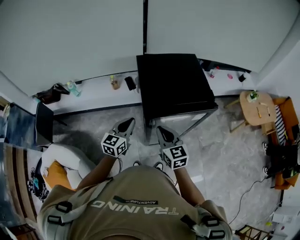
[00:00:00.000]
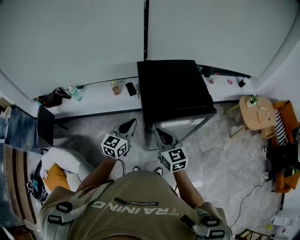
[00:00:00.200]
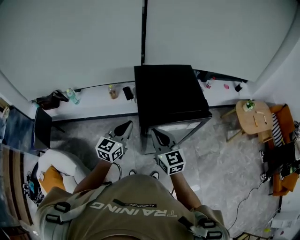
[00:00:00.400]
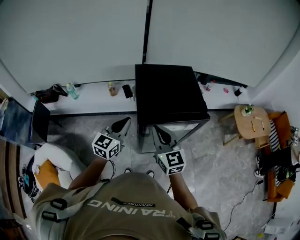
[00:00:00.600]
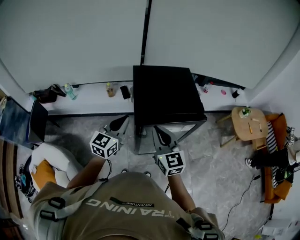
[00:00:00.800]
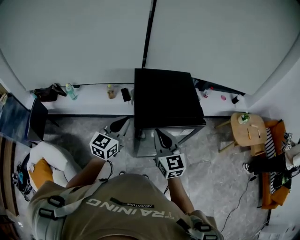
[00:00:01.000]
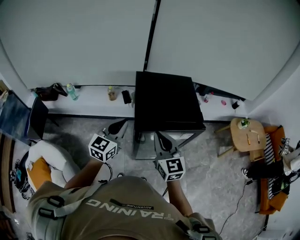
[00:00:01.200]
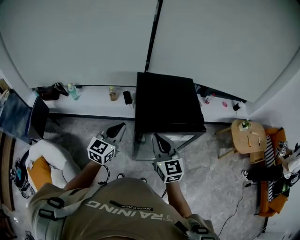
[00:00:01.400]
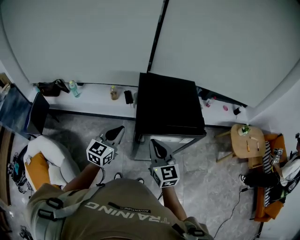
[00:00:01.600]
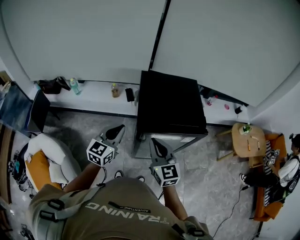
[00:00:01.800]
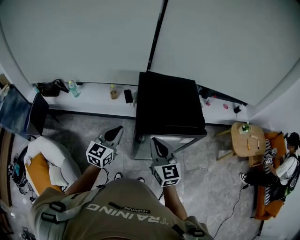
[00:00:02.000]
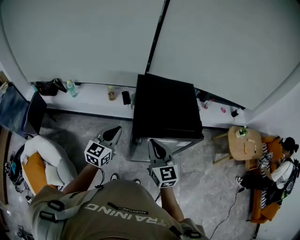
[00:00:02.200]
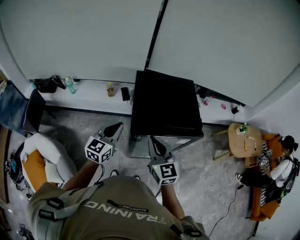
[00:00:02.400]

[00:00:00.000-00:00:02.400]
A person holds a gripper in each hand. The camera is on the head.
00:00:00.000 to 00:00:01.200: The two grippers go roughly 10 cm upward.
00:00:01.200 to 00:00:02.400: The grippers make only small movements.

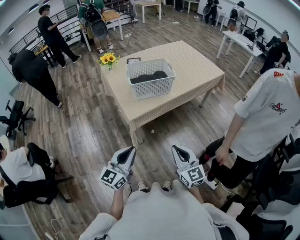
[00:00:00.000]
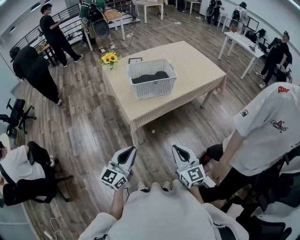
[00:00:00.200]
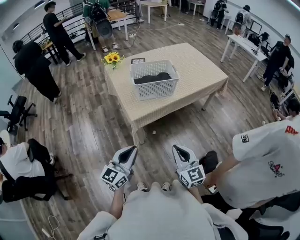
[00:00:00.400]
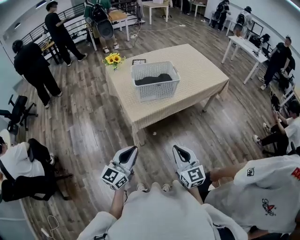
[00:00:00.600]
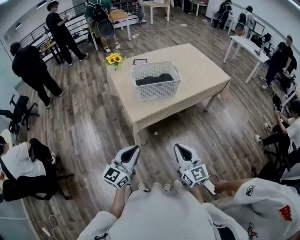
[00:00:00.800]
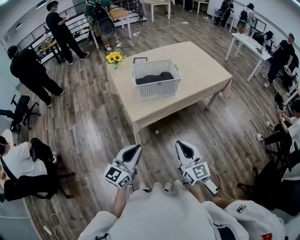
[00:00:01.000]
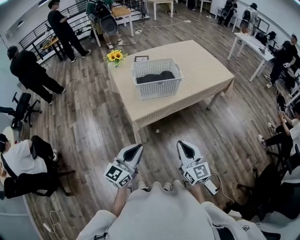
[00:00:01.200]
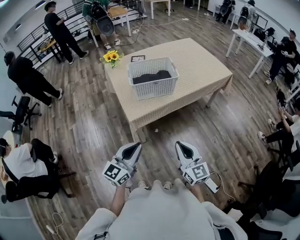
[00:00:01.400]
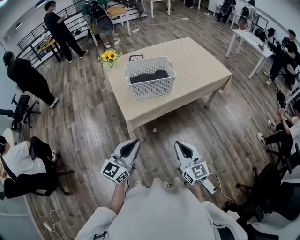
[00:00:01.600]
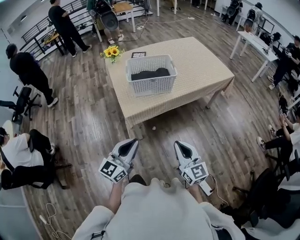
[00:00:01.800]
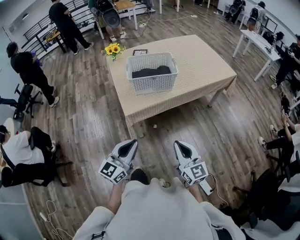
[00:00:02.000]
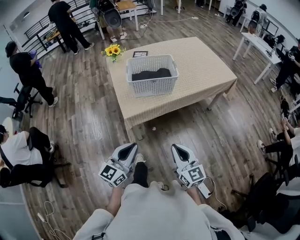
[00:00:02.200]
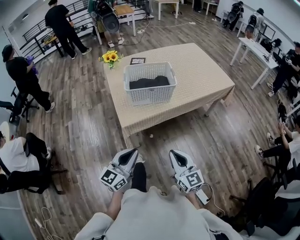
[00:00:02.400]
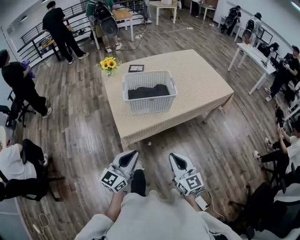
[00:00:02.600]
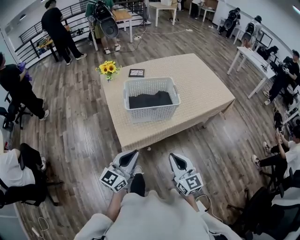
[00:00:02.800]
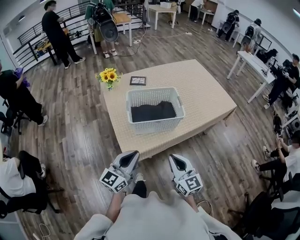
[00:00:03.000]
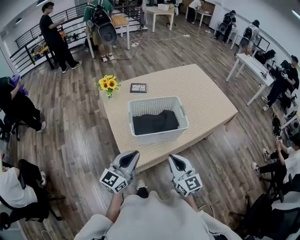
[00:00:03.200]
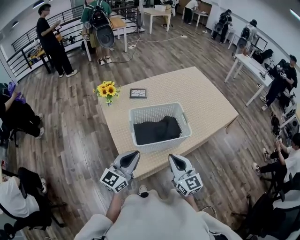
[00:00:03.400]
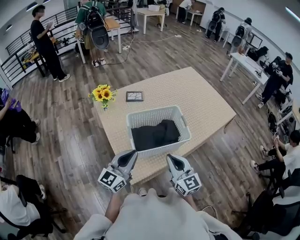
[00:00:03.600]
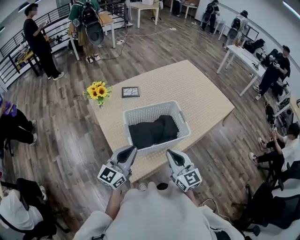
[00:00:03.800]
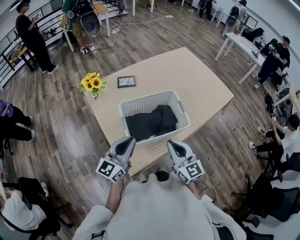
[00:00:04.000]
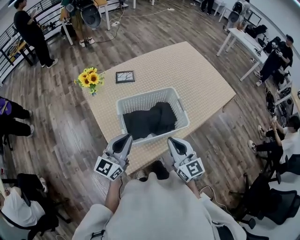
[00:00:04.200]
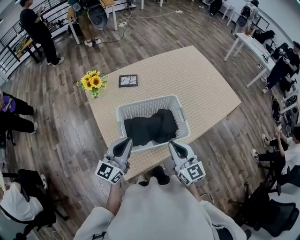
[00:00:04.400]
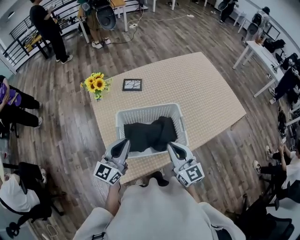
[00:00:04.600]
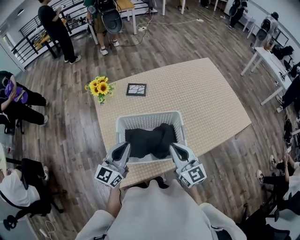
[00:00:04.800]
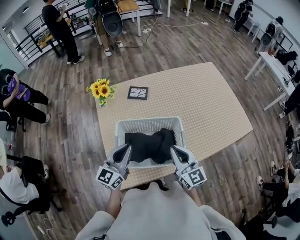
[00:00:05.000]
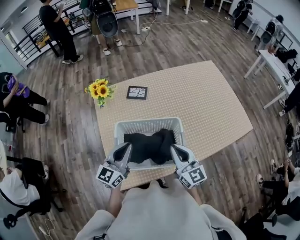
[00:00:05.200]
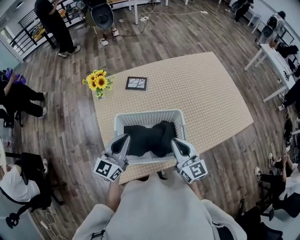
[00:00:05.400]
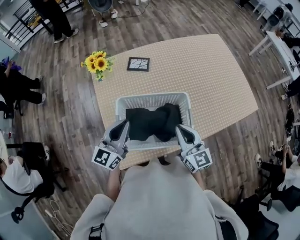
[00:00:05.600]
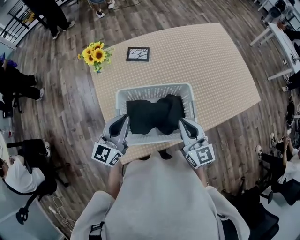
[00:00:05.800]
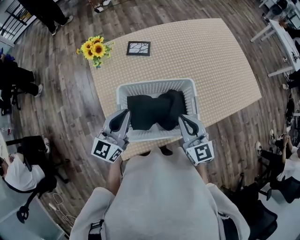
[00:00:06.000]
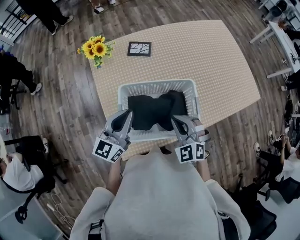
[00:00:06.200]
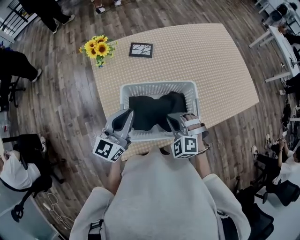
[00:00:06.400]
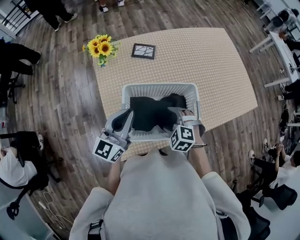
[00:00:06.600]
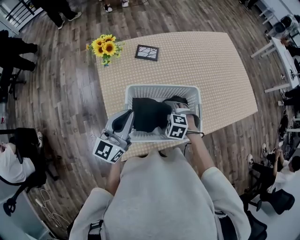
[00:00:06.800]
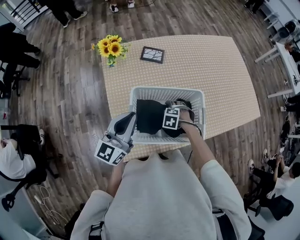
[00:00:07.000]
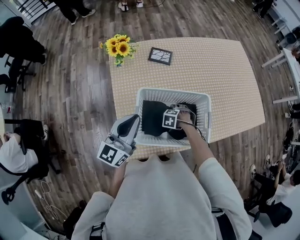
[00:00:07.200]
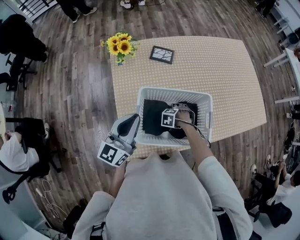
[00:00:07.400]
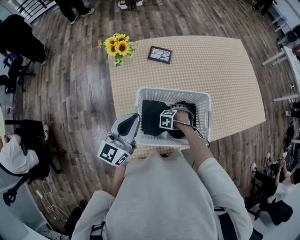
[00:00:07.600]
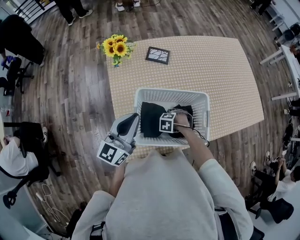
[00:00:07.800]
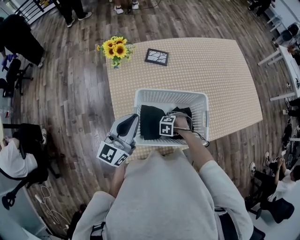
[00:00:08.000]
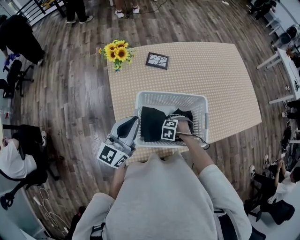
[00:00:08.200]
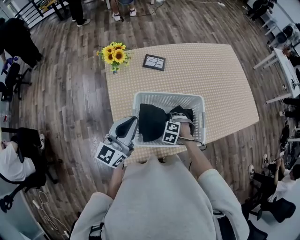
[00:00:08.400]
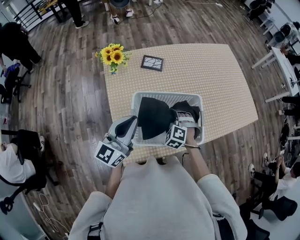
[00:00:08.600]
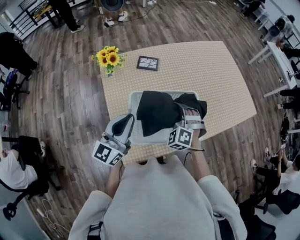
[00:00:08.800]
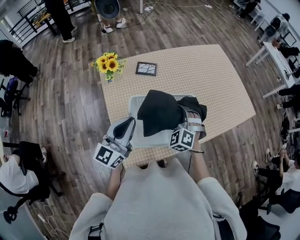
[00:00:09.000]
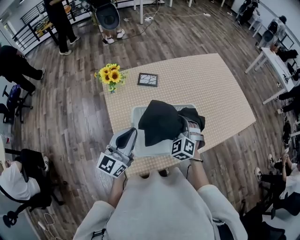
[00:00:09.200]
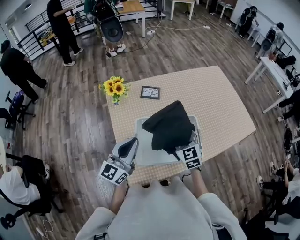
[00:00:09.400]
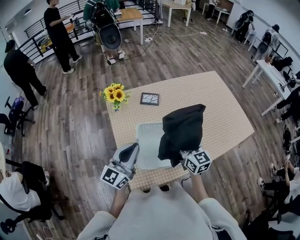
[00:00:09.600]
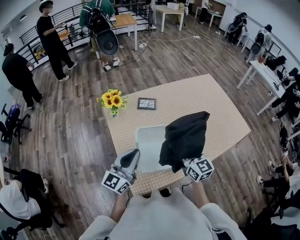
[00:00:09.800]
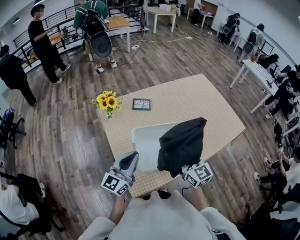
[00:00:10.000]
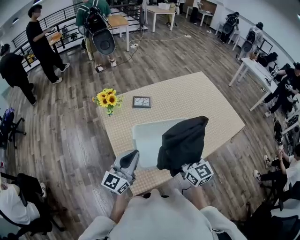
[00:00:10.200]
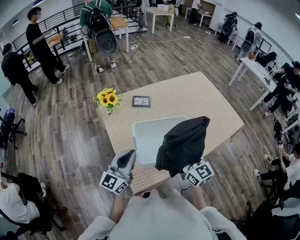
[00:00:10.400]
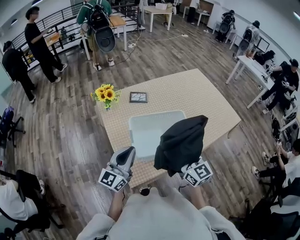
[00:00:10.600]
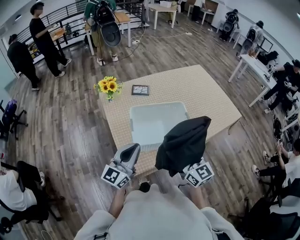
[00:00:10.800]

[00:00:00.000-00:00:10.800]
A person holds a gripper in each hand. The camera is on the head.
00:00:00.000 to 00:00:01.600: Both grippers move to the right and forward, about 10 cm.
00:00:01.600 to 00:00:03.000: The two grippers go roughly 20 cm forward.
00:00:03.000 to 00:00:04.600: The two grippers go some 25 cm forward.
00:00:04.600 to 00:00:06.200: The left gripper goes approximately 5 cm forward. The right gripper travels downward and forward by roughly 10 cm, and rolls counterclockwise, seen from behind, by about 40 degrees.
00:00:06.200 to 00:00:07.800: The right gripper travels downward by some 25 cm, angles its fingers downward, by some 60 degrees, and opens its fingers.
00:00:07.800 to 00:00:09.200: The right gripper shifts roughly 25 cm upward, and angles its fingers upward, by approximately 50 degrees.
00:00:09.200 to 00:00:10.800: The right gripper goes approximately 25 cm backward and upward, and rotates around the line of its fingers by some 50 degrees, clockwise from behind; the left gripper shifts roughly 15 cm backward.

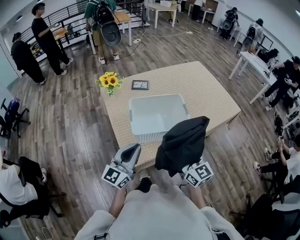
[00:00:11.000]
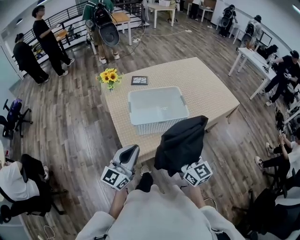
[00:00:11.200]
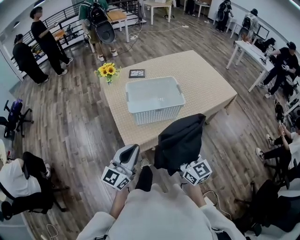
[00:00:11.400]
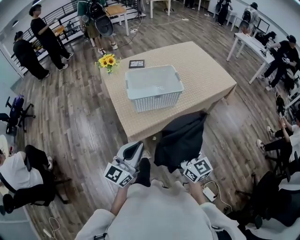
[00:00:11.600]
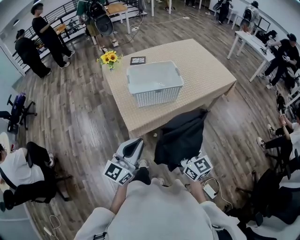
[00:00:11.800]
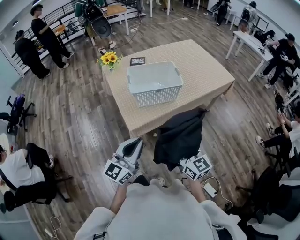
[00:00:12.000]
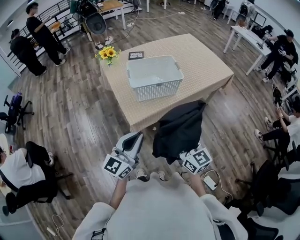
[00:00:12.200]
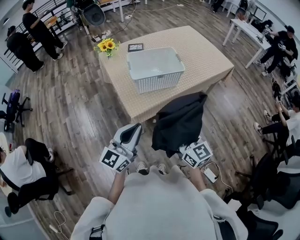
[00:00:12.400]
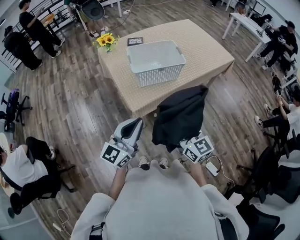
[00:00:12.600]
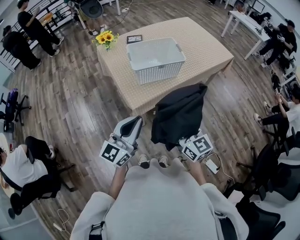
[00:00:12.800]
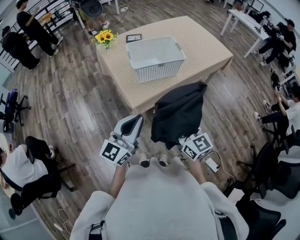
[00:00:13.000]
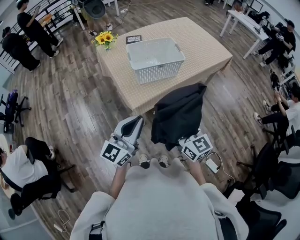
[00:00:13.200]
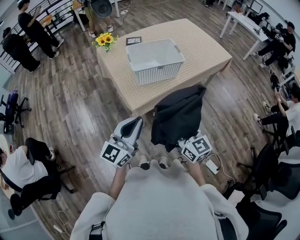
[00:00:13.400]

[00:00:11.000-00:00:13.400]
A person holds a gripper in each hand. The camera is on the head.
00:00:11.000 to 00:00:12.200: The grippers both shift backward by some 25 cm.
00:00:12.200 to 00:00:13.400: The grippers make only small movements.

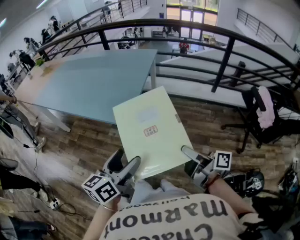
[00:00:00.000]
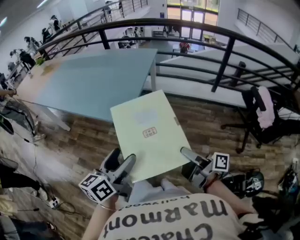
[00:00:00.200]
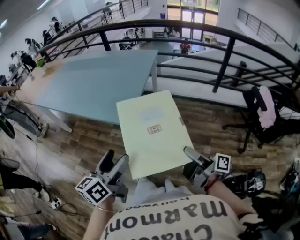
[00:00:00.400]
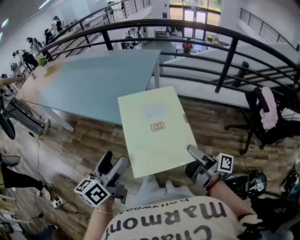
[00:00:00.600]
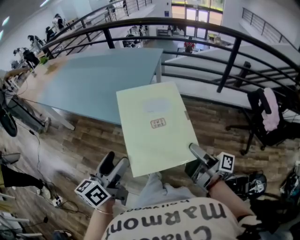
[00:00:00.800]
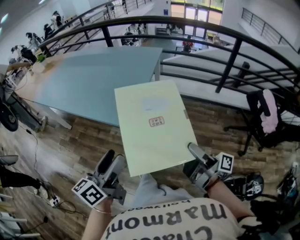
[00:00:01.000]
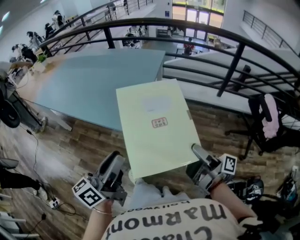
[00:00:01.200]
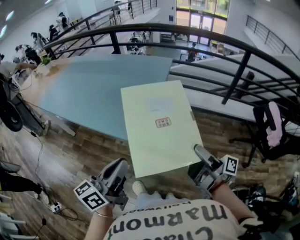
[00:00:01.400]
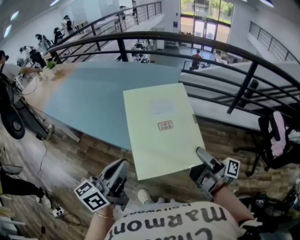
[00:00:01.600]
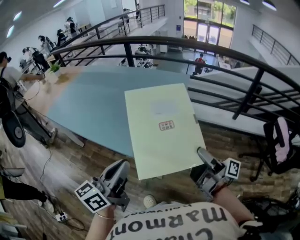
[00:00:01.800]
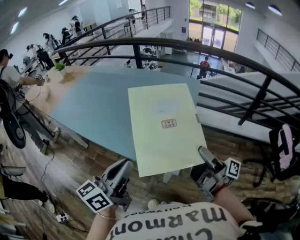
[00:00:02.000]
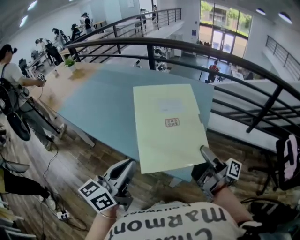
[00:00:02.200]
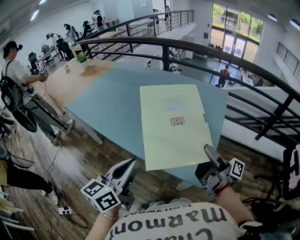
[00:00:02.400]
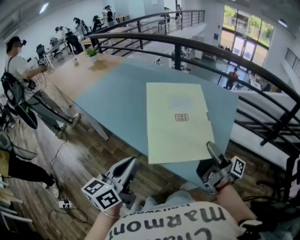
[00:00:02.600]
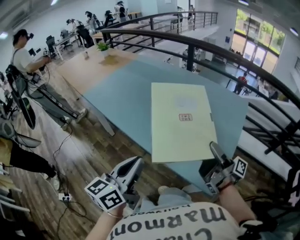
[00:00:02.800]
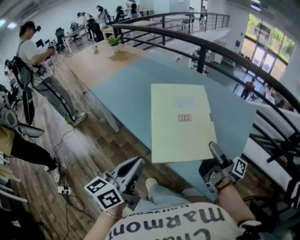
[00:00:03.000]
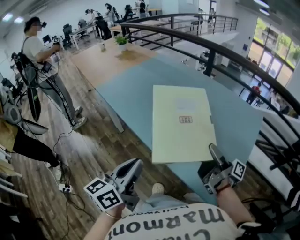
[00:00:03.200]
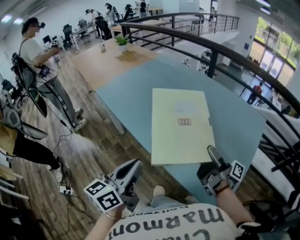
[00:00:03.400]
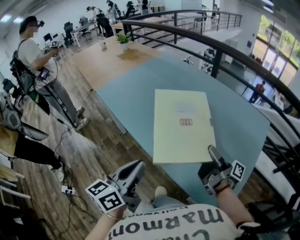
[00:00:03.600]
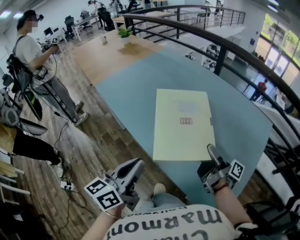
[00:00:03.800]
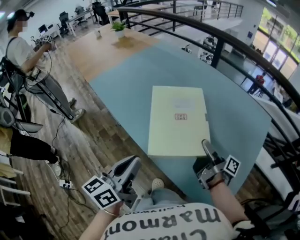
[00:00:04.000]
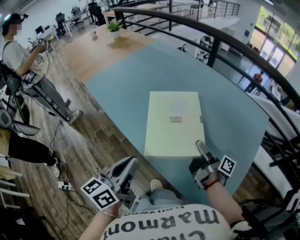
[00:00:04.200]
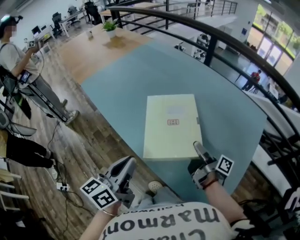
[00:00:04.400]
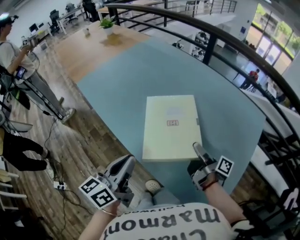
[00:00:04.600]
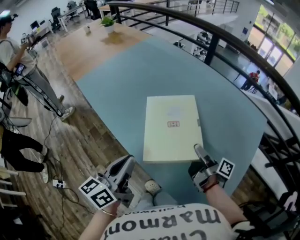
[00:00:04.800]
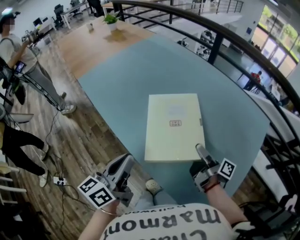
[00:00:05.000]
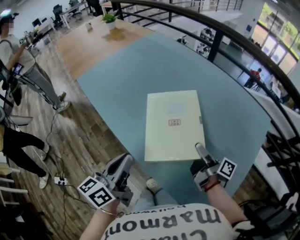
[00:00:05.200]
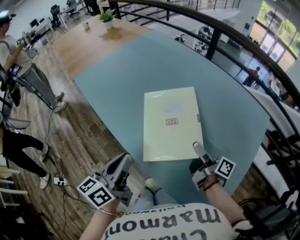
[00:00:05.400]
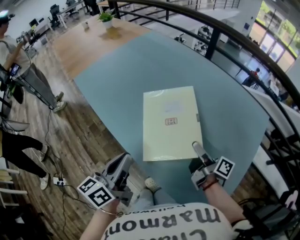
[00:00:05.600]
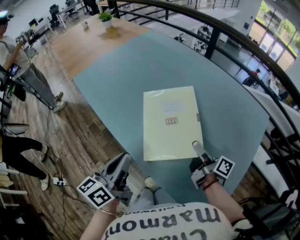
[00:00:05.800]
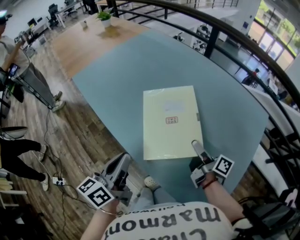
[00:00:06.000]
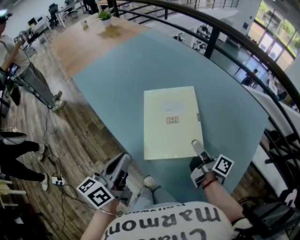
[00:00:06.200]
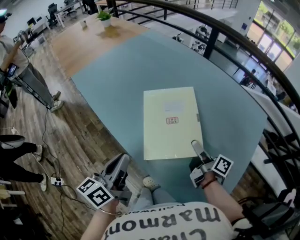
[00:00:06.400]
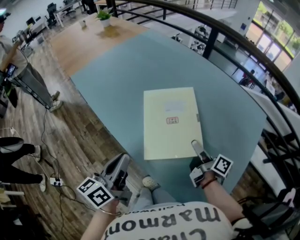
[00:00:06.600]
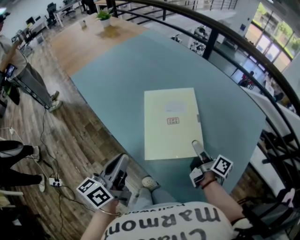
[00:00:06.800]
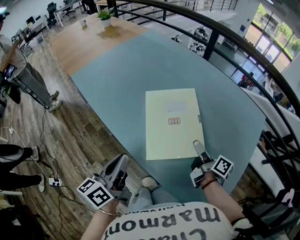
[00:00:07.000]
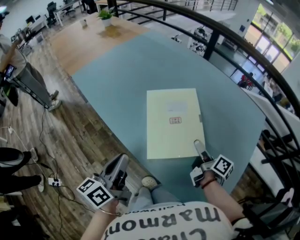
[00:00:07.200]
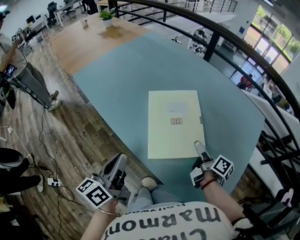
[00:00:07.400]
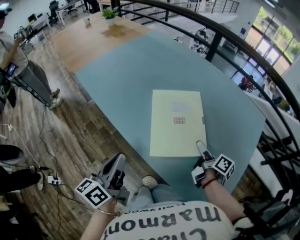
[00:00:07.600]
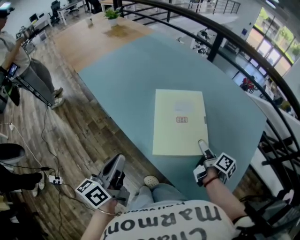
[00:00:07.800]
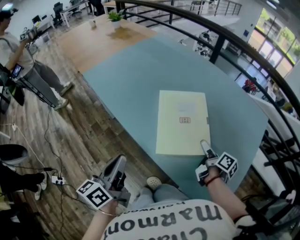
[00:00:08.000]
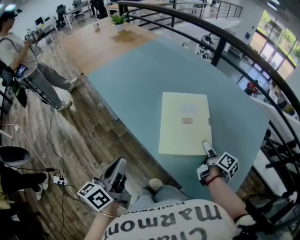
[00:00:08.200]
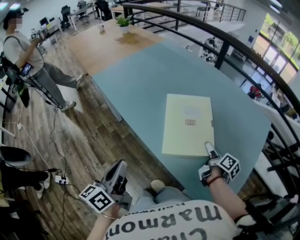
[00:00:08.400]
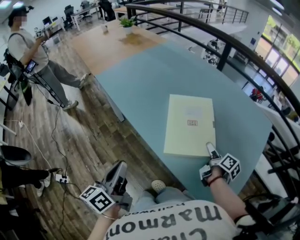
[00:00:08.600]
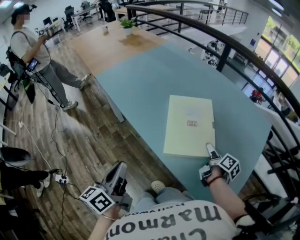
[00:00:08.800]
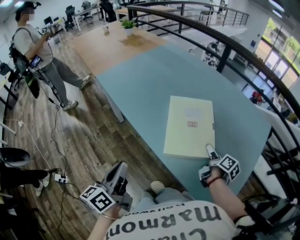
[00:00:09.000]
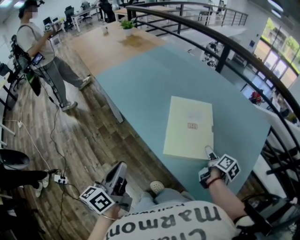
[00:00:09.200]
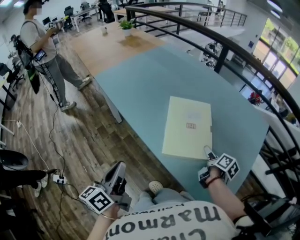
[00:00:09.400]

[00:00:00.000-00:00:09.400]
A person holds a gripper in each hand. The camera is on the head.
00:00:00.000 to 00:00:01.600: The left gripper ends up approximately 15 cm from where it was, and closes its fingers.
00:00:01.600 to 00:00:03.200: The left gripper ends up approximately 30 cm from where it was, and changes its angle by some 30 degrees.
00:00:03.200 to 00:00:04.800: The left gripper shifts by approximately 15 cm.
00:00:06.200 to 00:00:07.800: The left gripper changes place by approximately 5 cm.
00:00:07.800 to 00:00:09.400: The left gripper changes place by roughly 5 cm.
